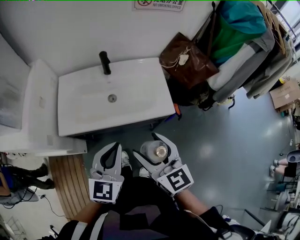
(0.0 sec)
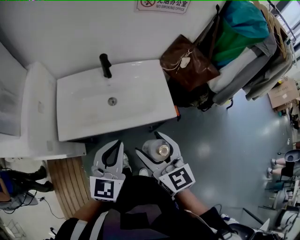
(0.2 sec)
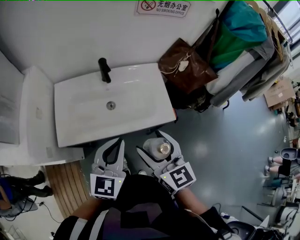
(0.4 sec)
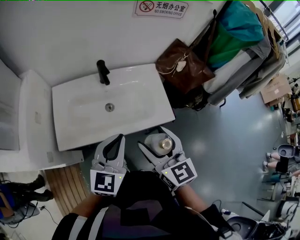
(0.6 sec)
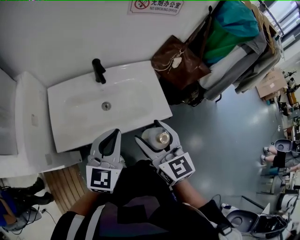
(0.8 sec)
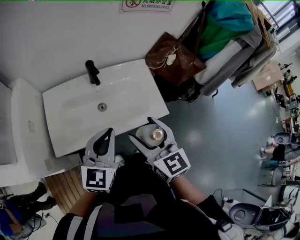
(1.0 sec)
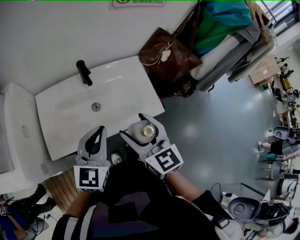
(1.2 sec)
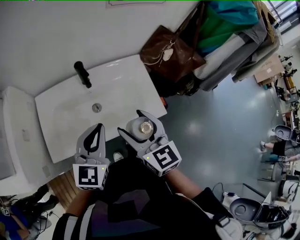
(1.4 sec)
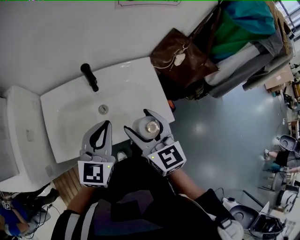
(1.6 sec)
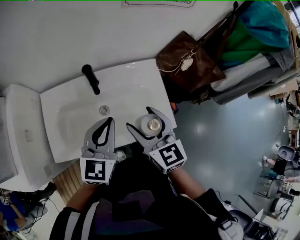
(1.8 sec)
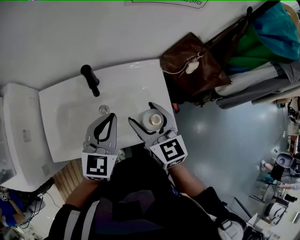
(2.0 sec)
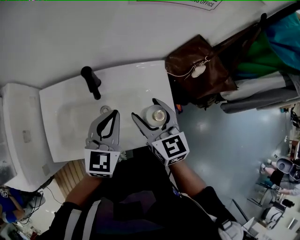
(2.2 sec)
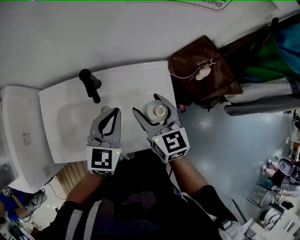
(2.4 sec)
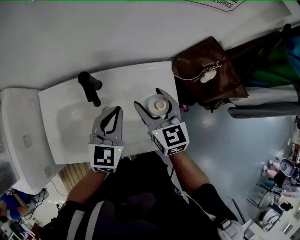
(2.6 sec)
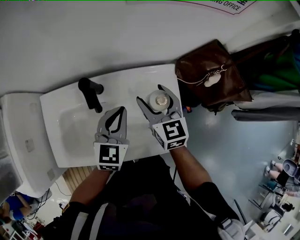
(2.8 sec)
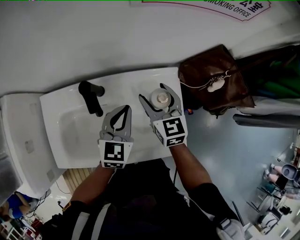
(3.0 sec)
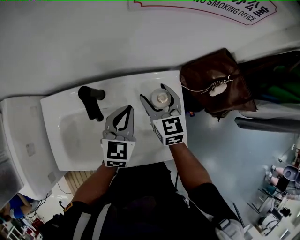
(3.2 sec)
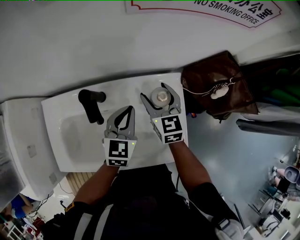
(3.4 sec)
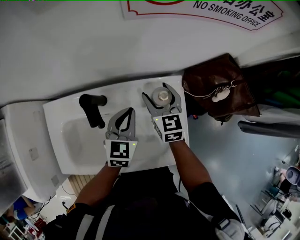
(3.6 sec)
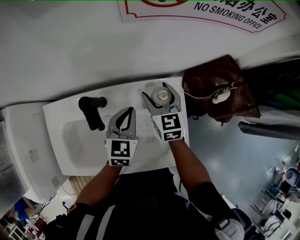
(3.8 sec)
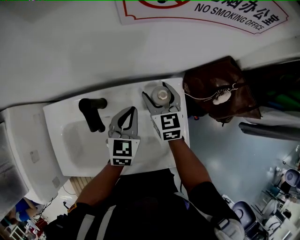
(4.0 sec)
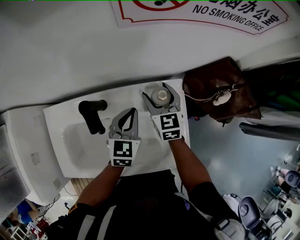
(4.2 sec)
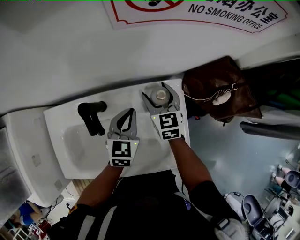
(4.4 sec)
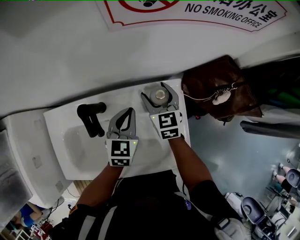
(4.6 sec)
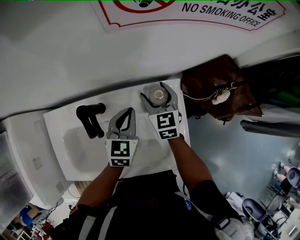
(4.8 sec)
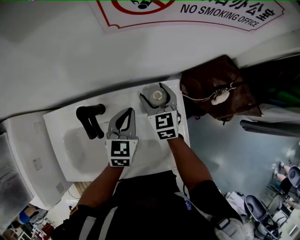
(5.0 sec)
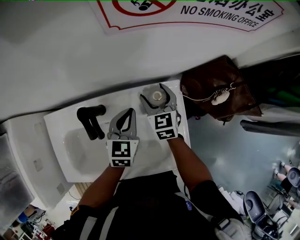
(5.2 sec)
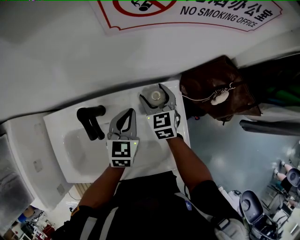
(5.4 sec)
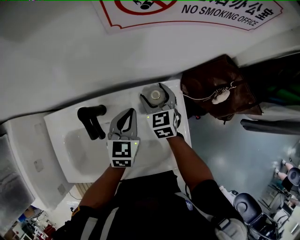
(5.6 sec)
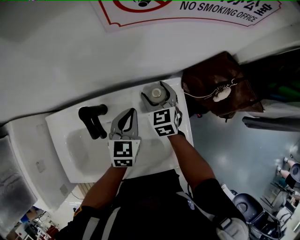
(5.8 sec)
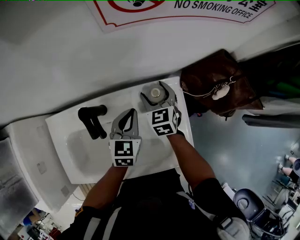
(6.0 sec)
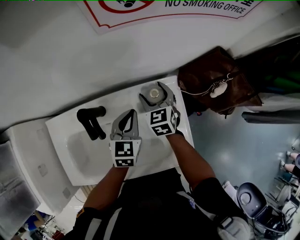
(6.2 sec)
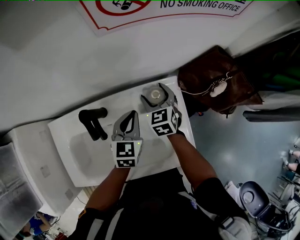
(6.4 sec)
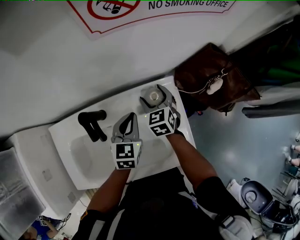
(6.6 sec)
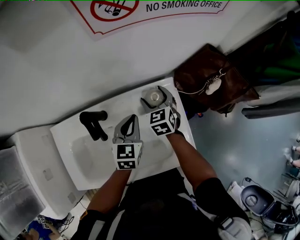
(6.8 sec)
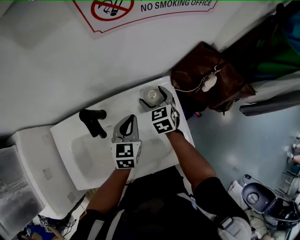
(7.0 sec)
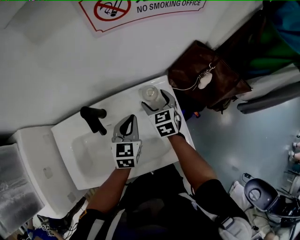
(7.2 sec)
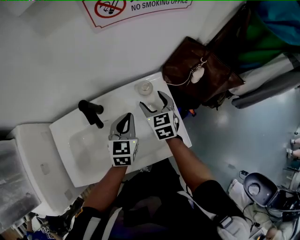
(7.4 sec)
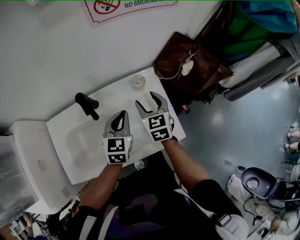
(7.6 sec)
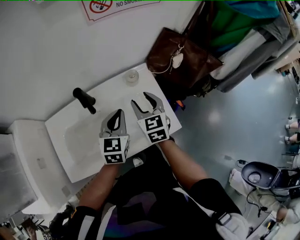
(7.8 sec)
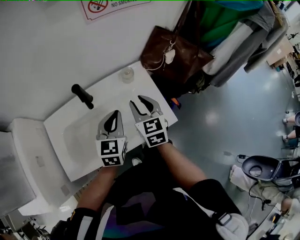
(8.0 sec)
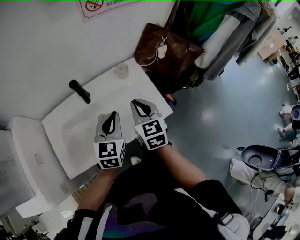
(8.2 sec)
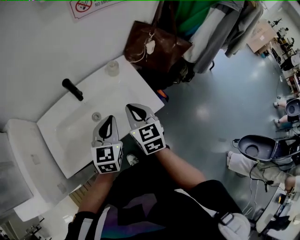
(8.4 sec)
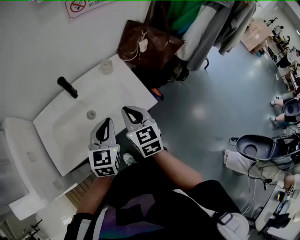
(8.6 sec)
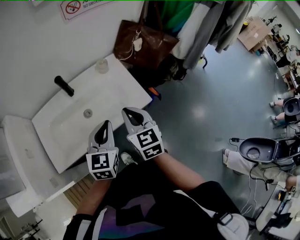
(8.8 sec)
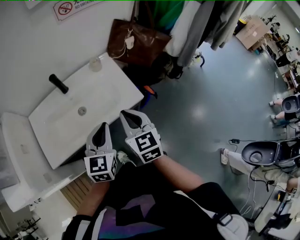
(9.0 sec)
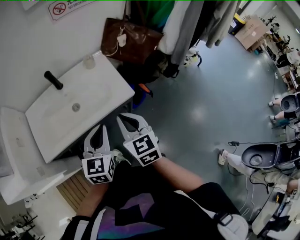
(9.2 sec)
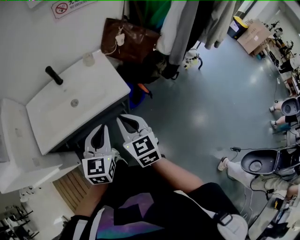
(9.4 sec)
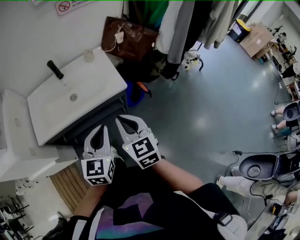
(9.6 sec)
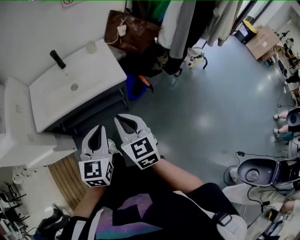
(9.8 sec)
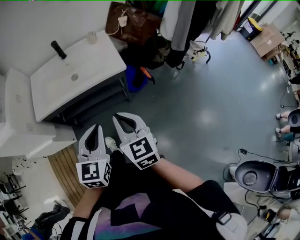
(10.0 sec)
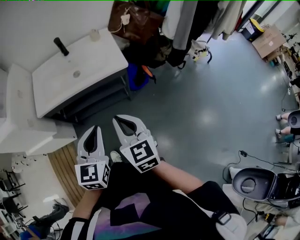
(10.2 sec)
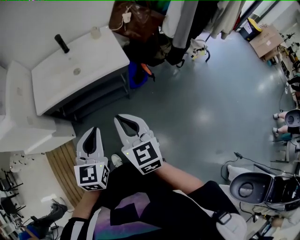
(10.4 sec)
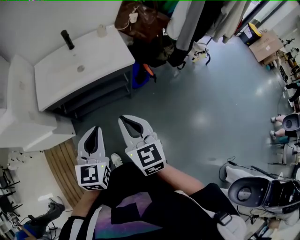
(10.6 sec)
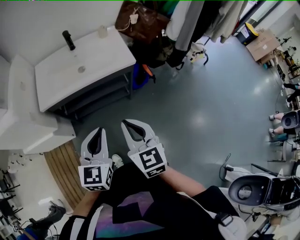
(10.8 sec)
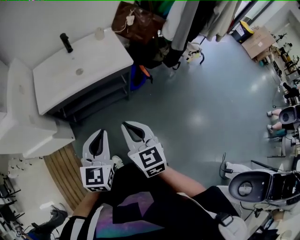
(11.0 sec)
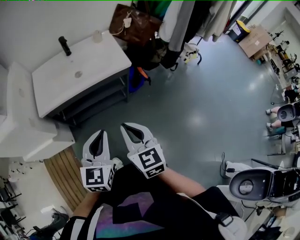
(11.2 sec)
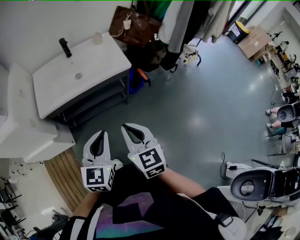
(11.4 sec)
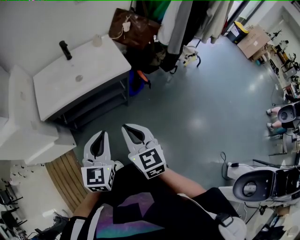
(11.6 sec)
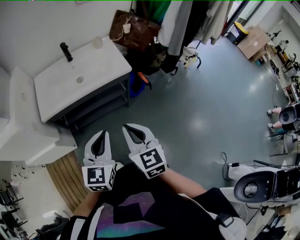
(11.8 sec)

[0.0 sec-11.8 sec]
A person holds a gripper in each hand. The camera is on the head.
0.0 sec to 1.4 sec: The grippers both shift forward by about 15 cm.
1.4 sec to 3.0 sec: Both grippers travel together forward and downward, some 30 cm.
3.0 sec to 4.4 sec: The left gripper travels downward by some 5 cm. Meanwhile the right gripper travels forward and downward by about 10 cm.
4.4 sec to 6.0 sec: The grippers make only small movements.
6.0 sec to 7.4 sec: Both grippers move backward, some 5 cm.
7.4 sec to 8.8 sec: The grippers both shift backward and upward by about 30 cm. The right gripper closes its fingers.
8.8 sec to 10.4 sec: The two grippers go some 30 cm backward.
10.4 sec to 11.8 sec: The right gripper moves some 5 cm.

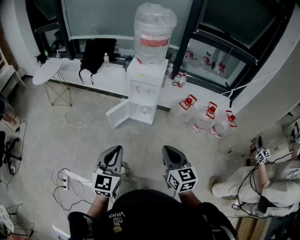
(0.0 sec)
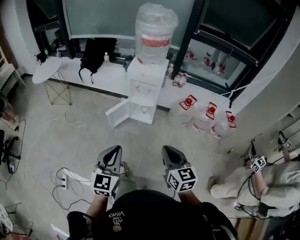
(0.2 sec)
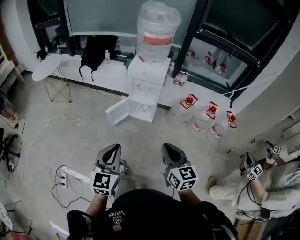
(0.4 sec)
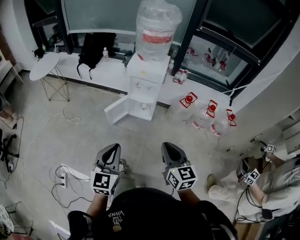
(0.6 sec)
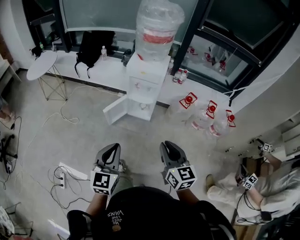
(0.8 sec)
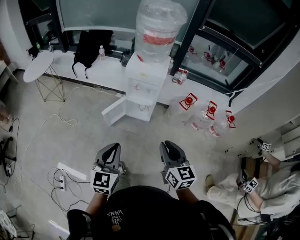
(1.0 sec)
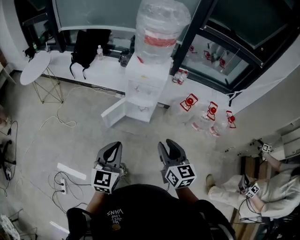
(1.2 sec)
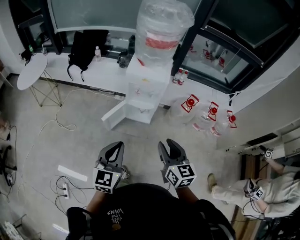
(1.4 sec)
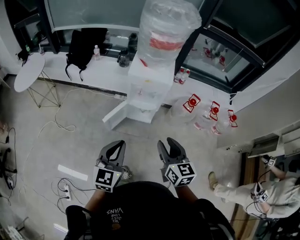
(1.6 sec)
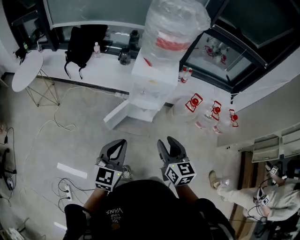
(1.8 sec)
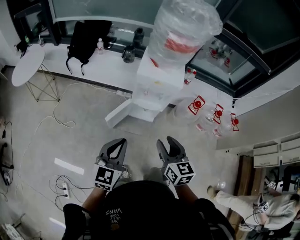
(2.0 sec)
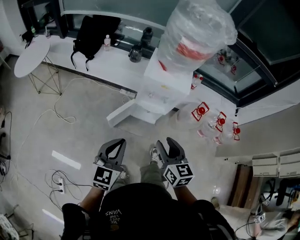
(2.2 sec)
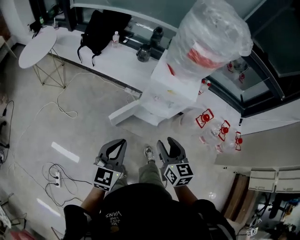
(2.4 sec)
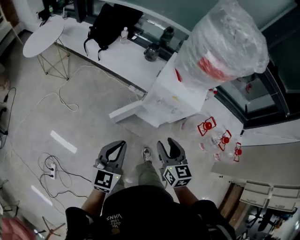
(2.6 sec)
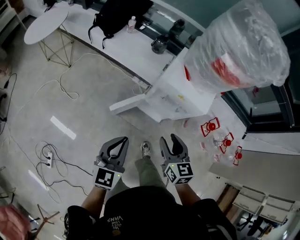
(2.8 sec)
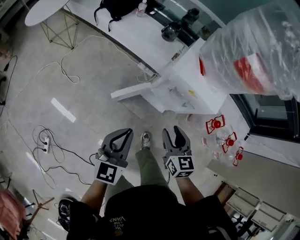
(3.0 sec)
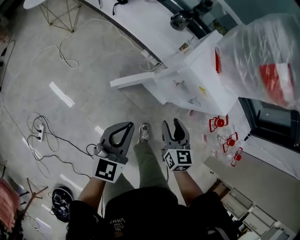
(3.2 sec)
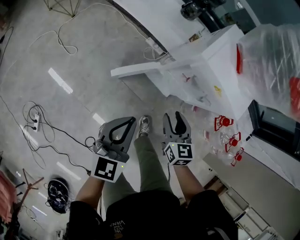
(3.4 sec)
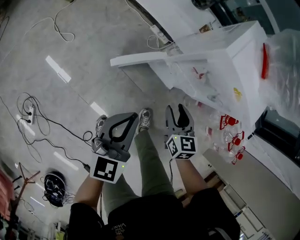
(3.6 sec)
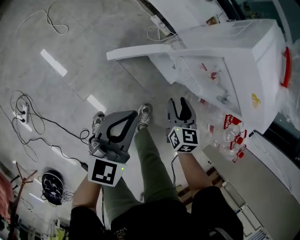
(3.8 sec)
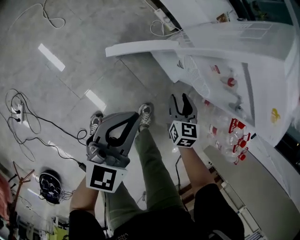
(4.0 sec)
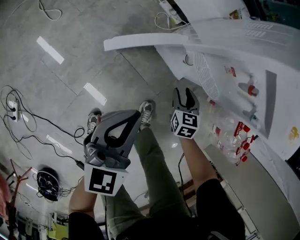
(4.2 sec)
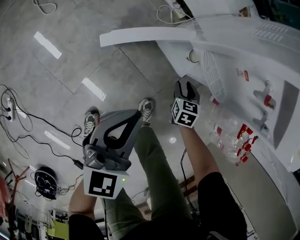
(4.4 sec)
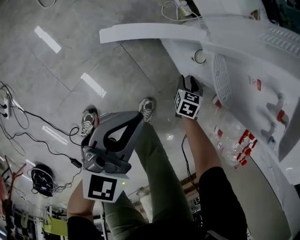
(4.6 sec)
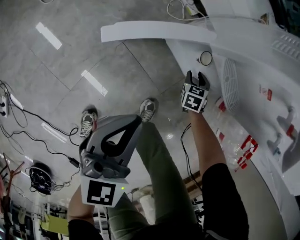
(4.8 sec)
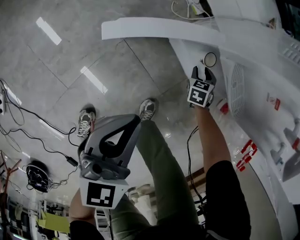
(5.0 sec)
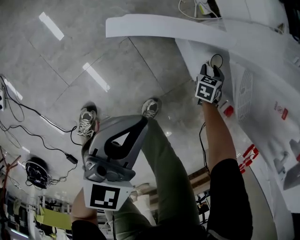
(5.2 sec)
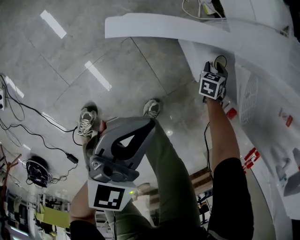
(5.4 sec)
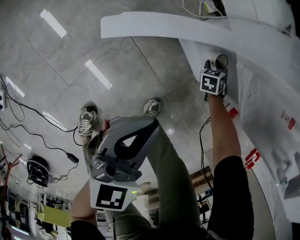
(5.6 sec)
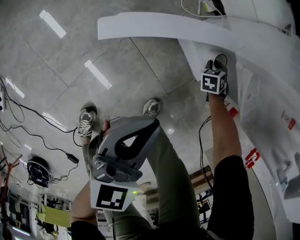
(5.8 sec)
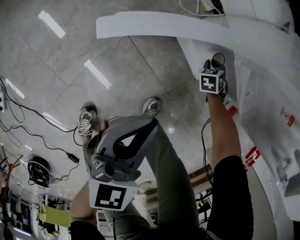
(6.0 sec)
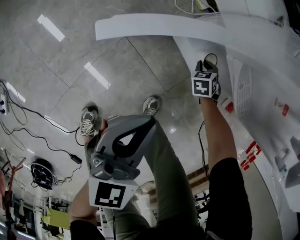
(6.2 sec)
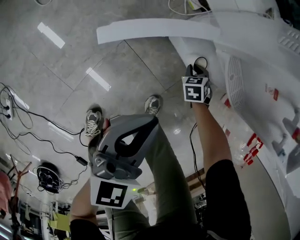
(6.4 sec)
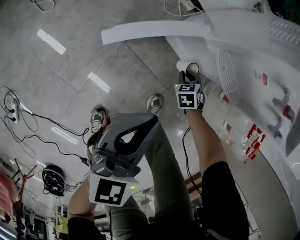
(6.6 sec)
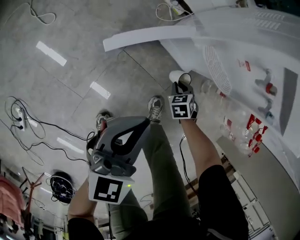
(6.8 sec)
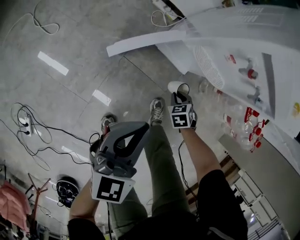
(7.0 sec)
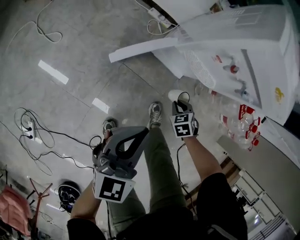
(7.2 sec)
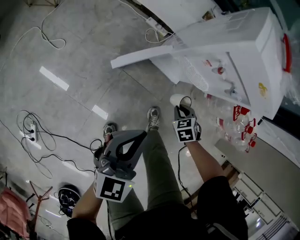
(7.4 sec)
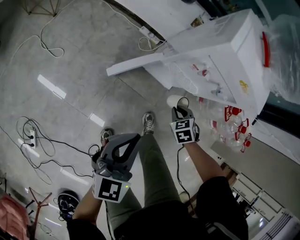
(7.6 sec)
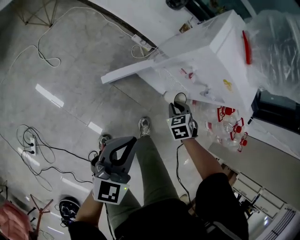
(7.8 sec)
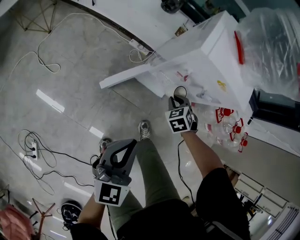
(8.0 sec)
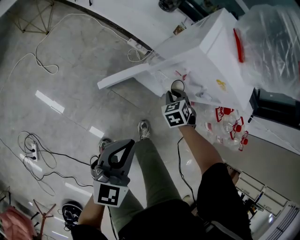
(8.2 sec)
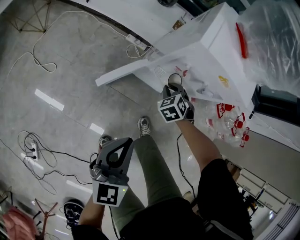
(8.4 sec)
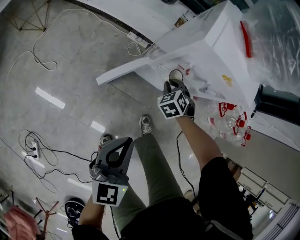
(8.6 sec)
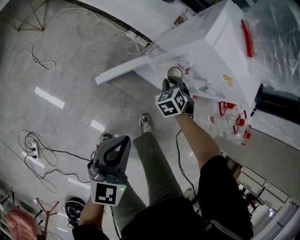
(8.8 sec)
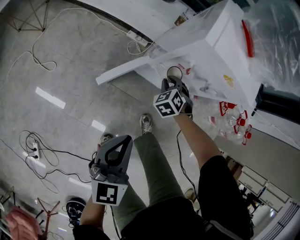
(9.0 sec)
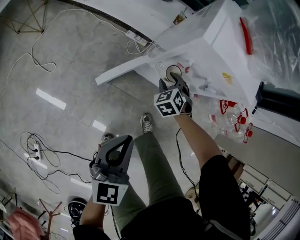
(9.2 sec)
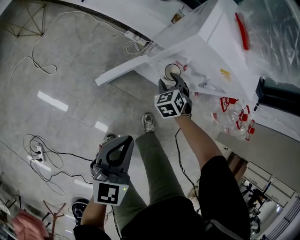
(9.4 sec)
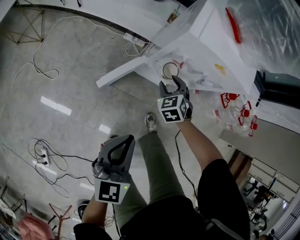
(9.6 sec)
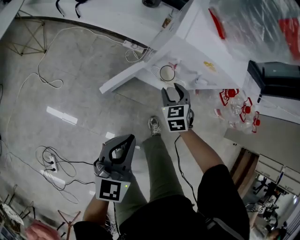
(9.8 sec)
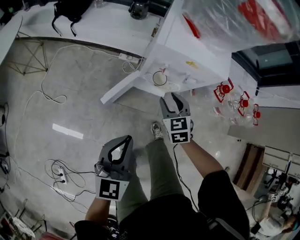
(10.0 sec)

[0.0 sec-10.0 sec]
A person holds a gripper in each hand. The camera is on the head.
0.0 sec to 1.4 sec: The grippers both shift forward by roughly 20 cm. The right gripper opens.
1.4 sec to 2.8 sec: Both grippers travel together forward and downward, about 25 cm. The right gripper swivels approximately 20 degrees.
2.8 sec to 4.2 sec: Both grippers travel together downward, roughly 50 cm. The right gripper rotates about 30 degrees.
4.2 sec to 5.8 sec: The left gripper heads downward, covering about 15 cm, while the right gripper moves downward and forward, some 30 cm, and swivels some 40 degrees.
5.8 sec to 7.2 sec: Both grippers travel together upward, about 25 cm. The right gripper turns by some 20 degrees.
7.2 sec to 8.6 sec: The left gripper travels upward by roughly 10 cm; the right gripper shifts approximately 15 cm upward.
8.6 sec to 10.0 sec: The right gripper is displaced upward and backward by about 20 cm, changes its angle by approximately 40 degrees, and opens, while the left gripper shifts roughly 10 cm upward.

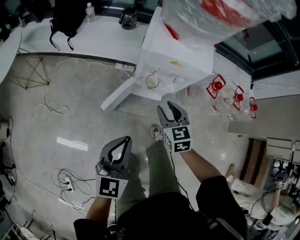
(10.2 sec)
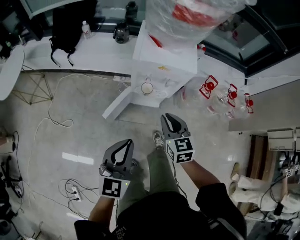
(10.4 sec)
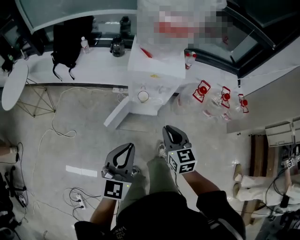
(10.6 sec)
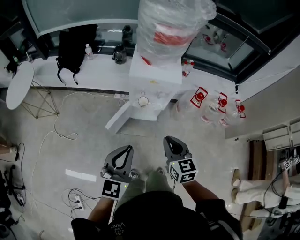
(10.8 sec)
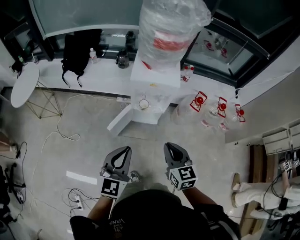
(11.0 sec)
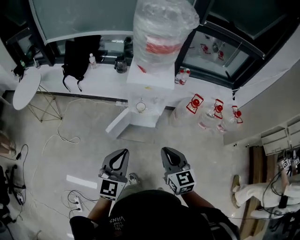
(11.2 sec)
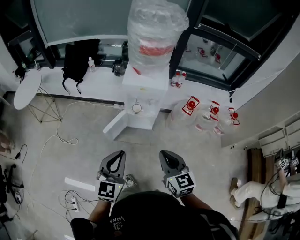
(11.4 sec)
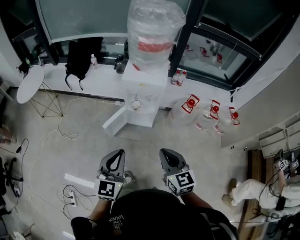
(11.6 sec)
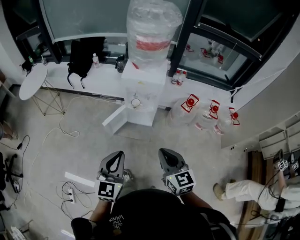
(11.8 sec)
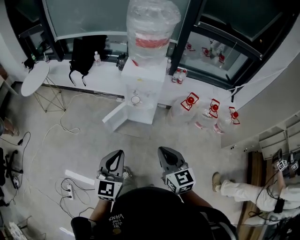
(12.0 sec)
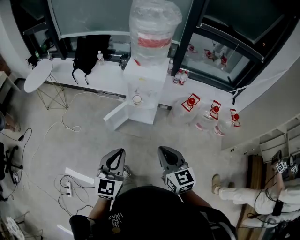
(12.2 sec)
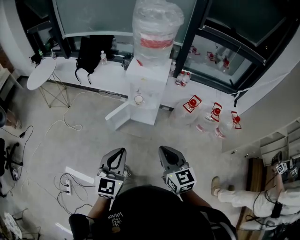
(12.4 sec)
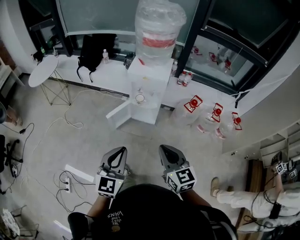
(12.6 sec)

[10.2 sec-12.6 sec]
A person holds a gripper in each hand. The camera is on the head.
10.2 sec to 11.4 sec: The left gripper travels upward, backward and to the right by approximately 25 cm. Meanwhile the right gripper is displaced backward, upward and to the right by approximately 40 cm, and closes its fingers.
11.4 sec to 12.6 sec: The grippers both shift backward and to the right by about 15 cm.
